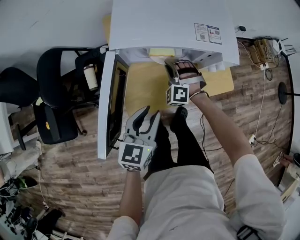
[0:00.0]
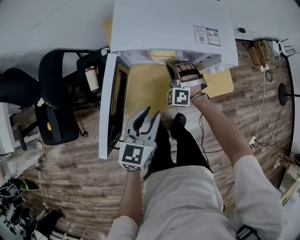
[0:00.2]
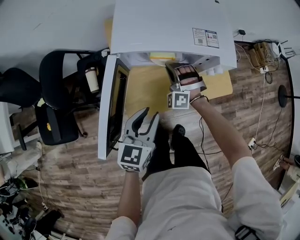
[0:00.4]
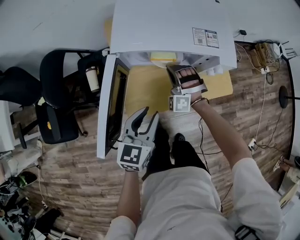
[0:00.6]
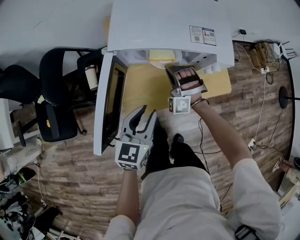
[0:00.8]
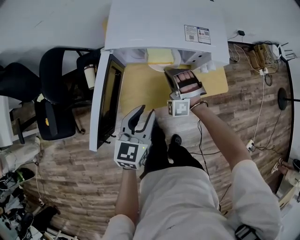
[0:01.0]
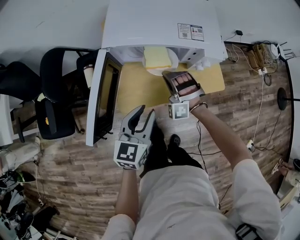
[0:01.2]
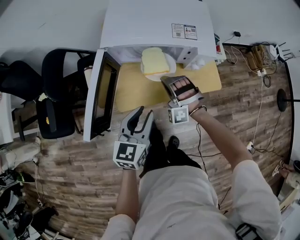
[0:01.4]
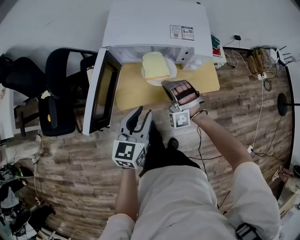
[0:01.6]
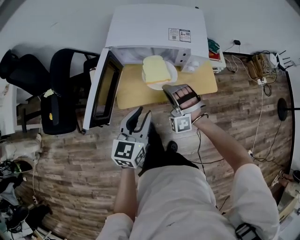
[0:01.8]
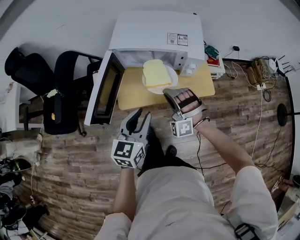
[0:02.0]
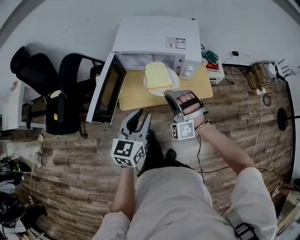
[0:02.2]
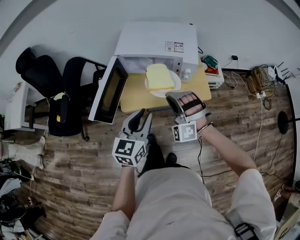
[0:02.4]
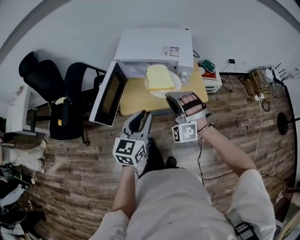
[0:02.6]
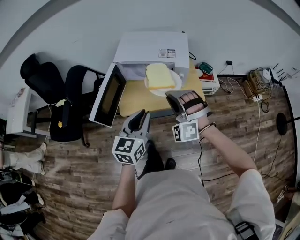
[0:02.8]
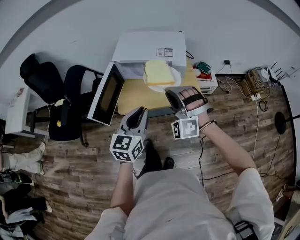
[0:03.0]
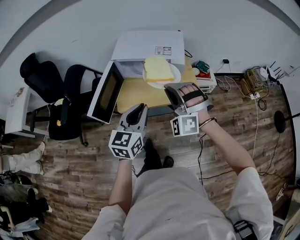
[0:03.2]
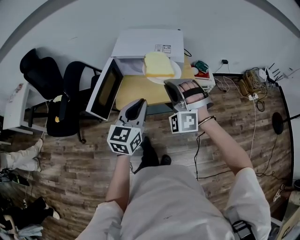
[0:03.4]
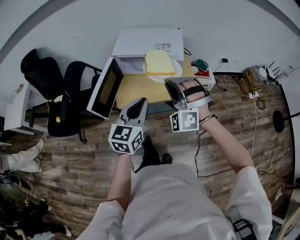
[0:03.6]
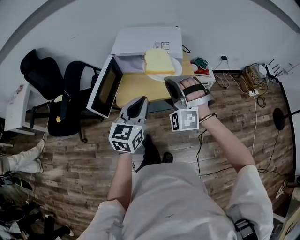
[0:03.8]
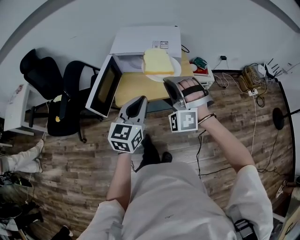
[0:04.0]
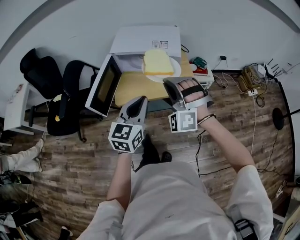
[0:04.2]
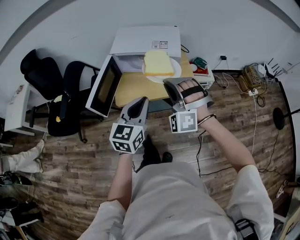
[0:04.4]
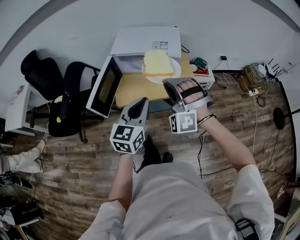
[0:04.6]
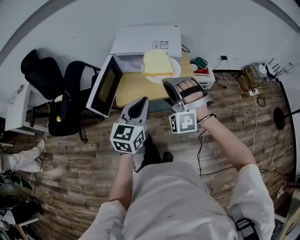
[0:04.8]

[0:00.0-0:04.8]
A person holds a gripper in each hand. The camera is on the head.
0:00.0 to 0:01.6: The left gripper shifts about 10 cm to the right and backward. The right gripper moves backward, upward and to the right, approximately 15 cm, and changes its angle by some 20 degrees.
0:01.6 to 0:03.2: The right gripper goes some 25 cm upward and backward; the left gripper shifts some 15 cm upward, backward and to the right.
0:03.2 to 0:04.8: There are only small adjustments of the grippers.

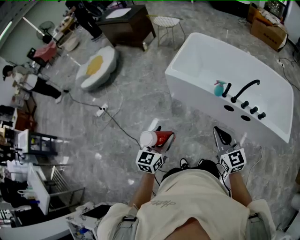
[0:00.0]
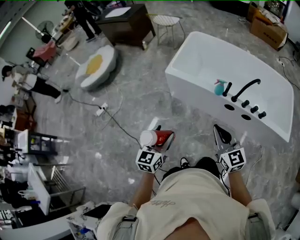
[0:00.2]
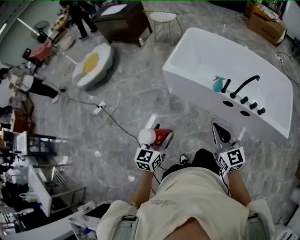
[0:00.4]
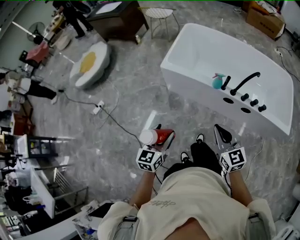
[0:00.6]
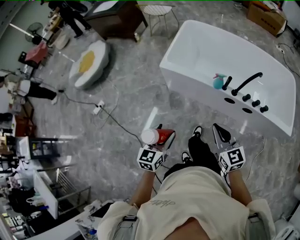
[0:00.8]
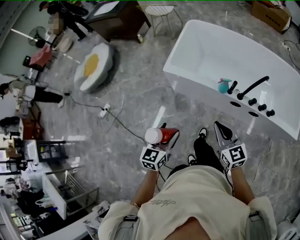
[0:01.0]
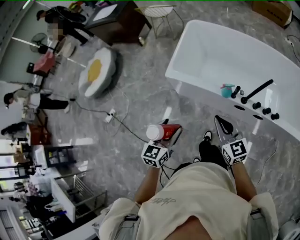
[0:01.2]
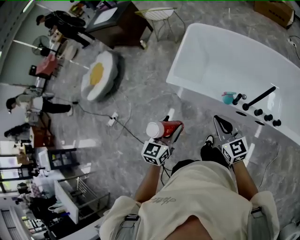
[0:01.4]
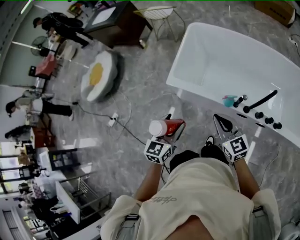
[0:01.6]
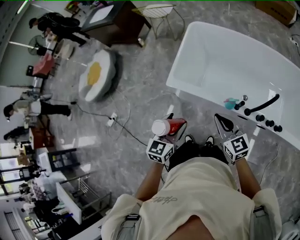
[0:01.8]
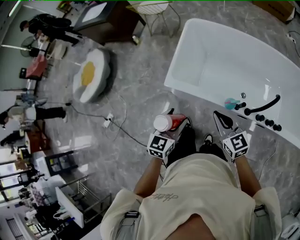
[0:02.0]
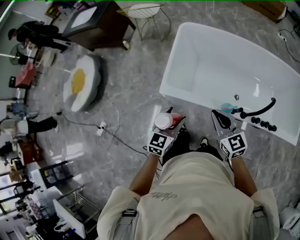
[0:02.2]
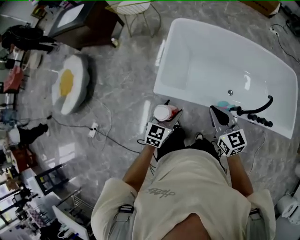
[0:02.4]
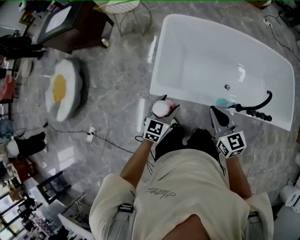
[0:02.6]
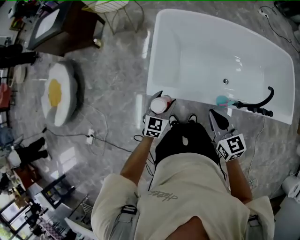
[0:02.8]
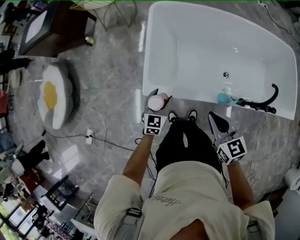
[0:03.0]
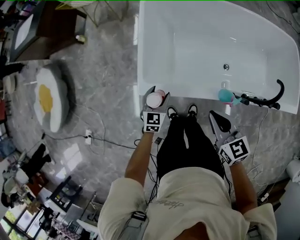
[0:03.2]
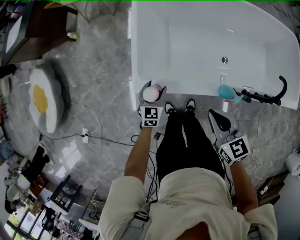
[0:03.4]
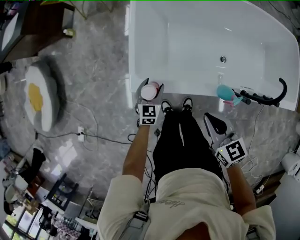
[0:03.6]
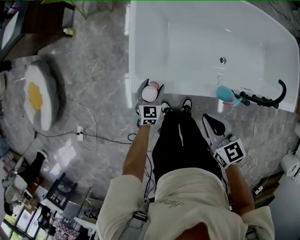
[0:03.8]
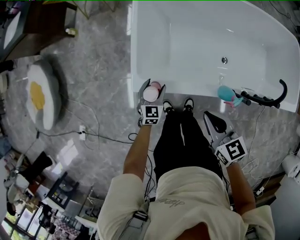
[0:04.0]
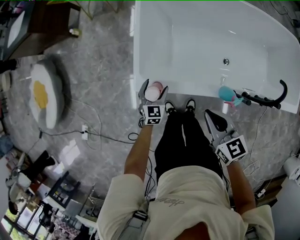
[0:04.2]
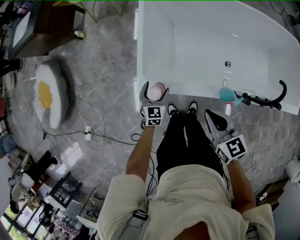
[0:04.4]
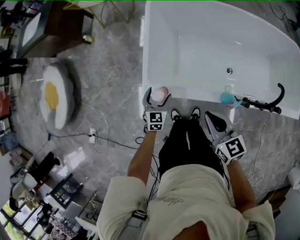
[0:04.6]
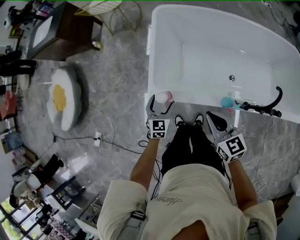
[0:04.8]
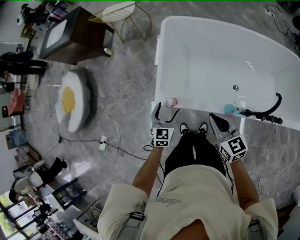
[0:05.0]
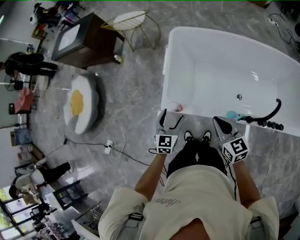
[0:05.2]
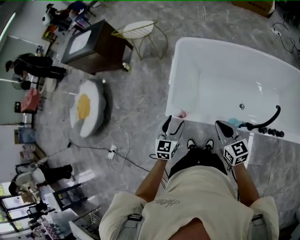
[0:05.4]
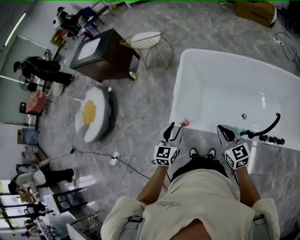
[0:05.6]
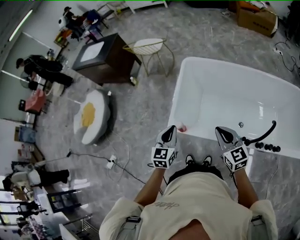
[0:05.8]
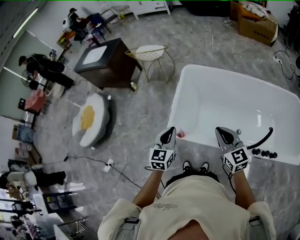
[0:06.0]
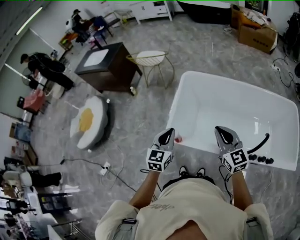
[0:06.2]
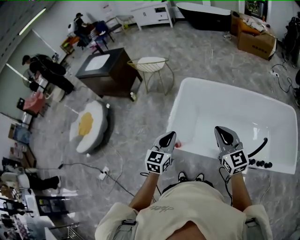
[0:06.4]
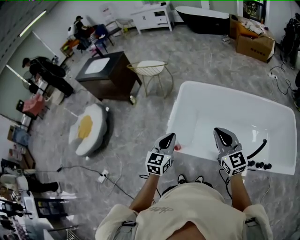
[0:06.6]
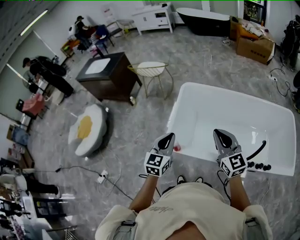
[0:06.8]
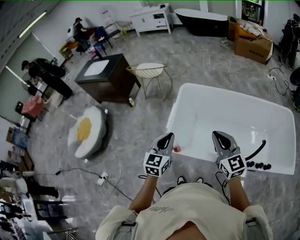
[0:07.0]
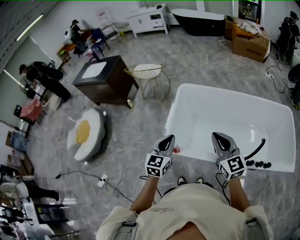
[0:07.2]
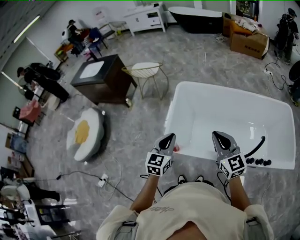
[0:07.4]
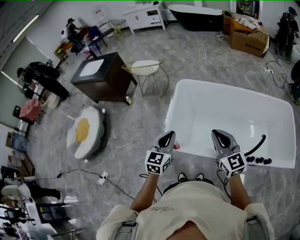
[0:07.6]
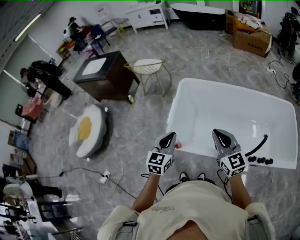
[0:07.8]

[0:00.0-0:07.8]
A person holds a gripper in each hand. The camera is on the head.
0:00.0 to 0:01.6: The grippers both shift forward by about 25 cm.
0:01.6 to 0:03.2: The left gripper goes approximately 40 cm forward and downward; the right gripper goes some 15 cm forward and downward, and changes its angle by about 30 degrees.
0:04.6 to 0:06.2: The left gripper goes roughly 30 cm upward, and closes. The right gripper moves upward, some 15 cm, and changes its angle by roughly 30 degrees.
0:06.2 to 0:07.8: There are only small adjustments of the grippers.

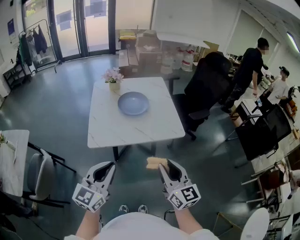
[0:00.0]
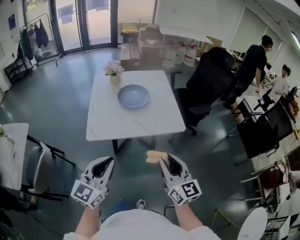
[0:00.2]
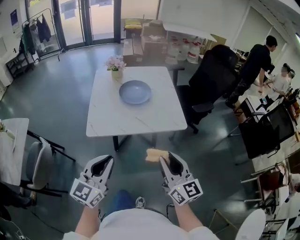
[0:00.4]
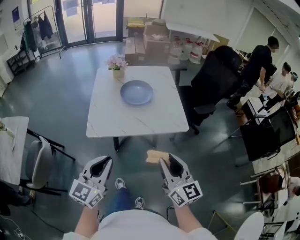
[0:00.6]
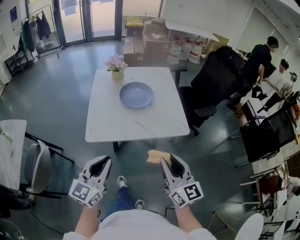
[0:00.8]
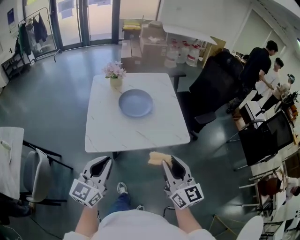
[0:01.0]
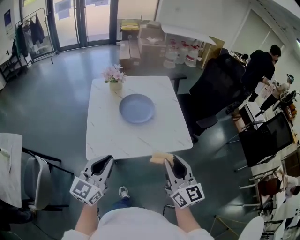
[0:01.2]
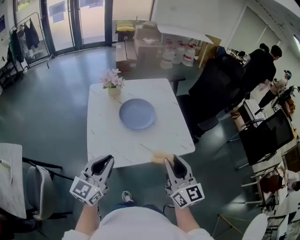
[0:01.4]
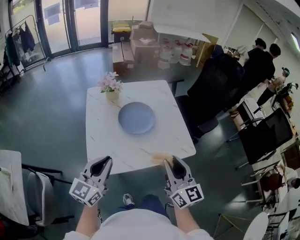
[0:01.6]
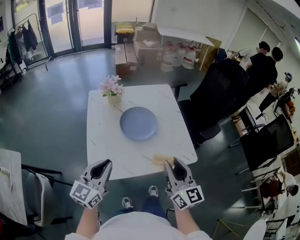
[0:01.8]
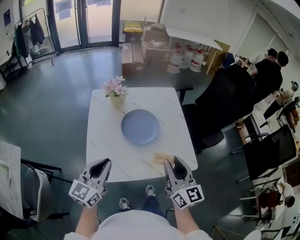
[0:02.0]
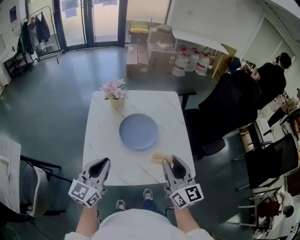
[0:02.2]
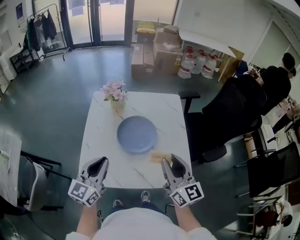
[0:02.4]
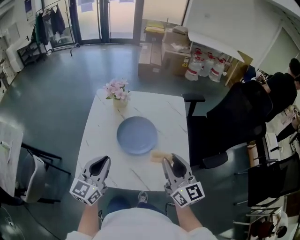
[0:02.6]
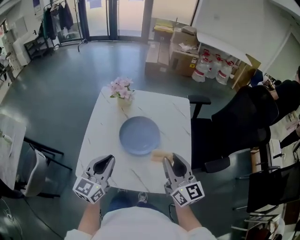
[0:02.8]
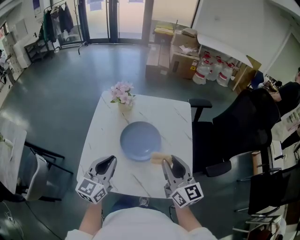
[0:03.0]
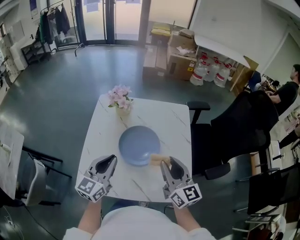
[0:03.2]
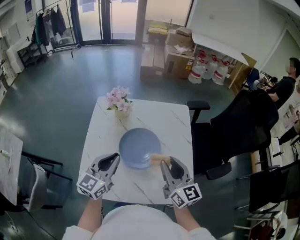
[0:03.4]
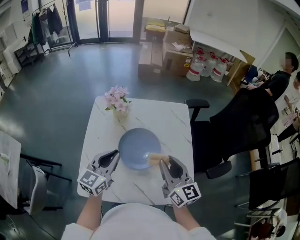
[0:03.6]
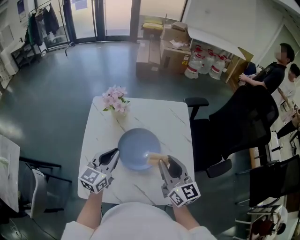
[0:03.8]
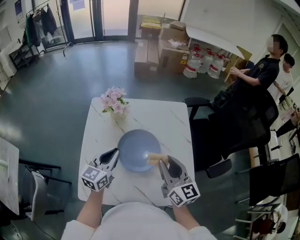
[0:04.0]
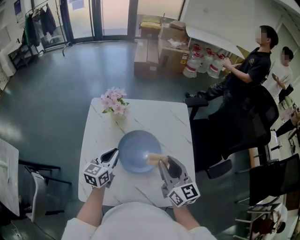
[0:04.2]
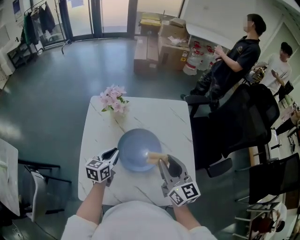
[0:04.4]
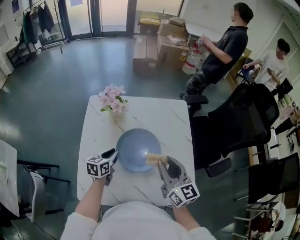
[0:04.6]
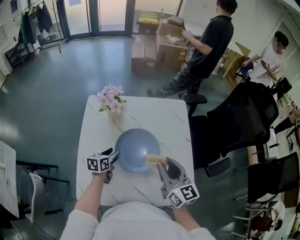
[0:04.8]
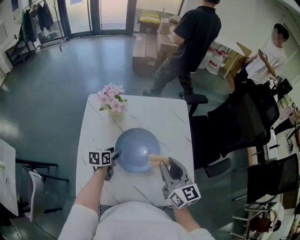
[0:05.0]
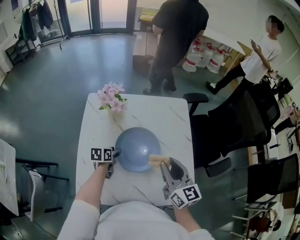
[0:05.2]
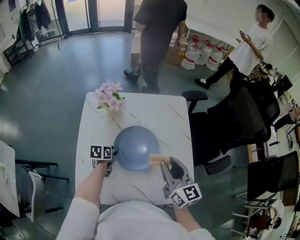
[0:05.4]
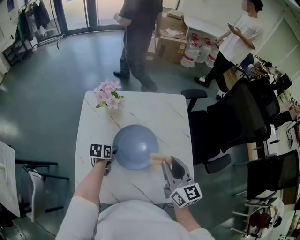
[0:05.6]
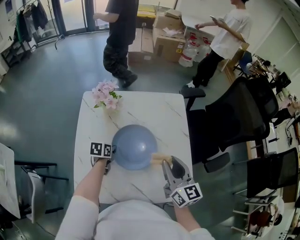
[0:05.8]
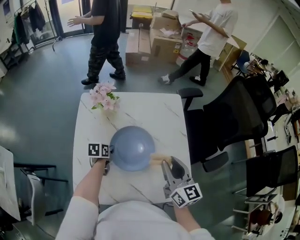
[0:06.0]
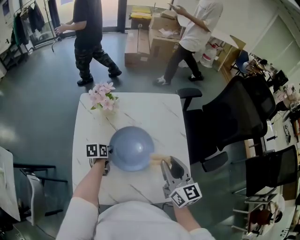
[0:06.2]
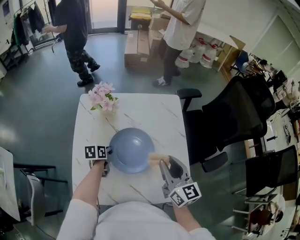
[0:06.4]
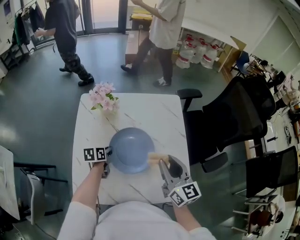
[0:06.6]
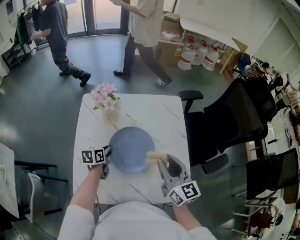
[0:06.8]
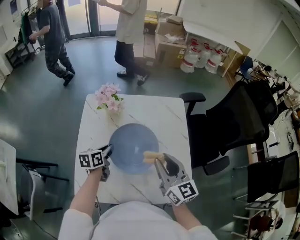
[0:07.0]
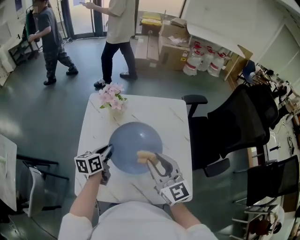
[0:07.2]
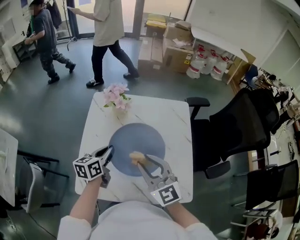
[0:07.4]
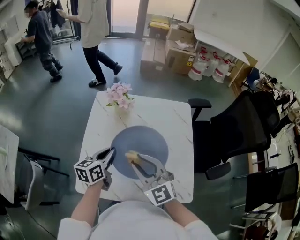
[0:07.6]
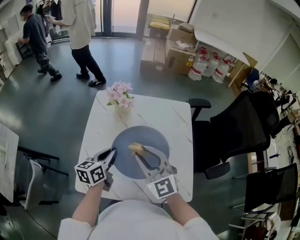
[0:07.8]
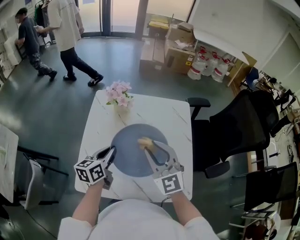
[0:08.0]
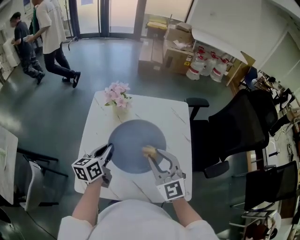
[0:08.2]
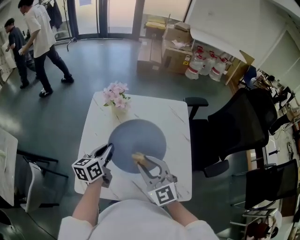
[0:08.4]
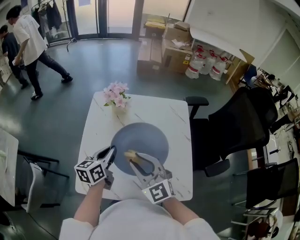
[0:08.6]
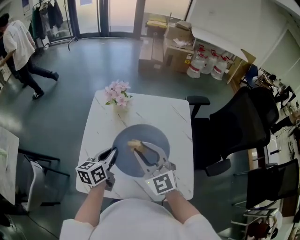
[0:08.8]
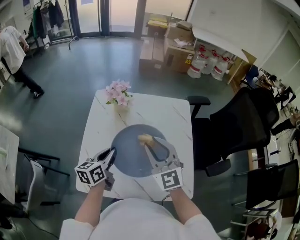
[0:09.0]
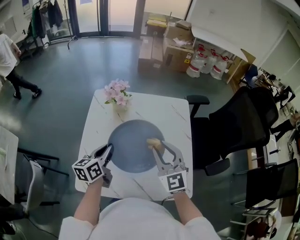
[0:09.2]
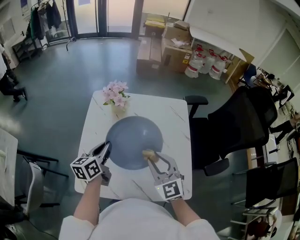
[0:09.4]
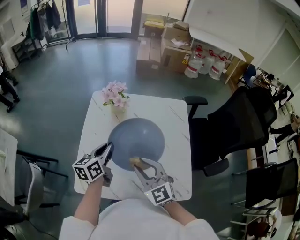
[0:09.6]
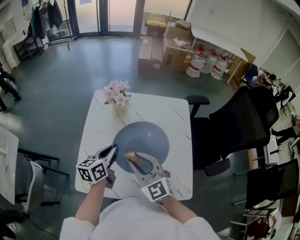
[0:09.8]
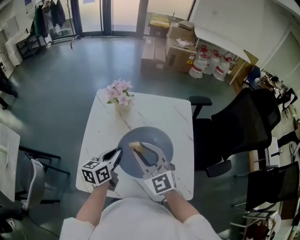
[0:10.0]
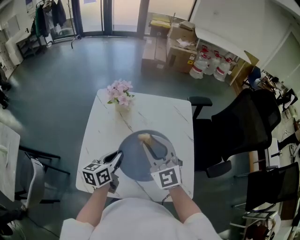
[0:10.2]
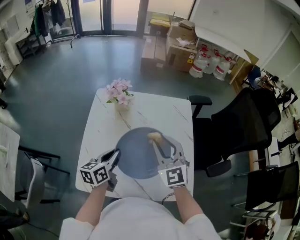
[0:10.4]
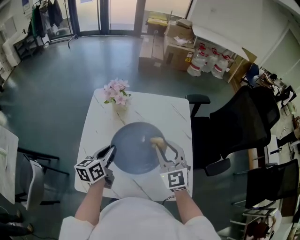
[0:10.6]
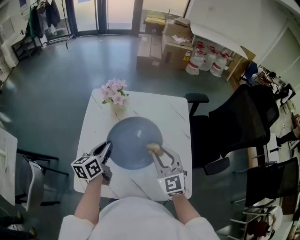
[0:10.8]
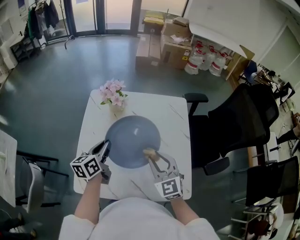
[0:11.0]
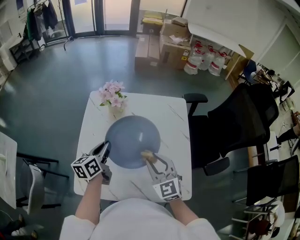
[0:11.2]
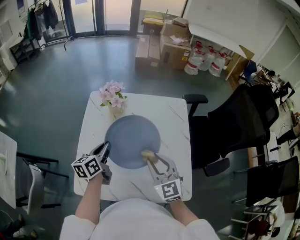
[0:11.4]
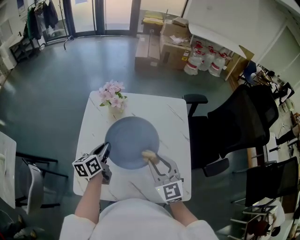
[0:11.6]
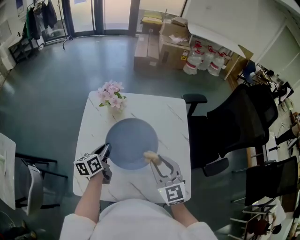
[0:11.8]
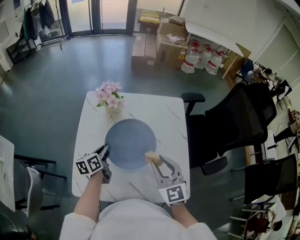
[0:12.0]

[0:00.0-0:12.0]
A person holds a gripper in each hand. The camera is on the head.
0:00.0 to 0:01.6: The grippers both shift forward by about 20 cm.
0:01.6 to 0:03.0: The right gripper is displaced forward by approximately 20 cm, and changes its angle by approximately 20 degrees. Meanwhile the left gripper goes roughly 15 cm forward and to the right, and changes its angle by about 20 degrees.
0:03.0 to 0:04.4: The right gripper heads forward, covering roughly 10 cm. Meanwhile the left gripper goes about 20 cm forward and downward, and turns by roughly 30 degrees.
0:04.4 to 0:06.0: The left gripper travels downward by about 10 cm, rotates about 30 degrees, and opens, then closes once more.
0:06.0 to 0:07.6: The left gripper is displaced upward and backward by approximately 20 cm, and points its fingers roughly 30 degrees further upward. The right gripper travels to the left by some 15 cm, and swivels about 50 degrees.
0:07.6 to 0:09.0: The right gripper moves left and right over about 5 cm, changing direction 2 times.
0:10.4 to 0:12.0: The right gripper shifts about 5 cm backward, while the left gripper moves downward and forward, roughly 10 cm.
